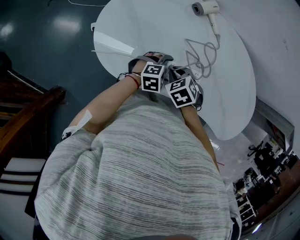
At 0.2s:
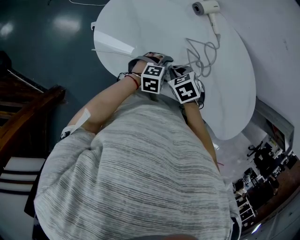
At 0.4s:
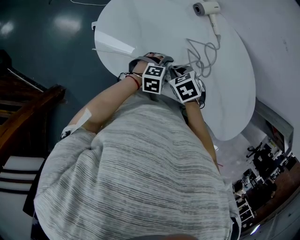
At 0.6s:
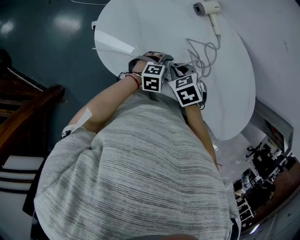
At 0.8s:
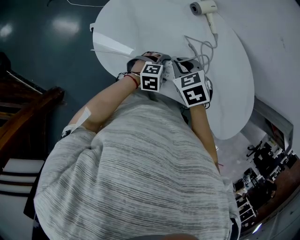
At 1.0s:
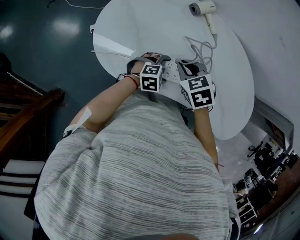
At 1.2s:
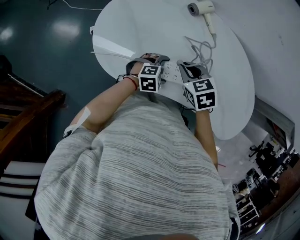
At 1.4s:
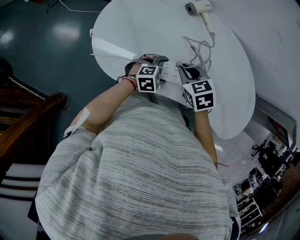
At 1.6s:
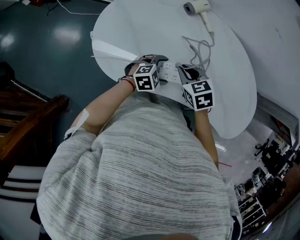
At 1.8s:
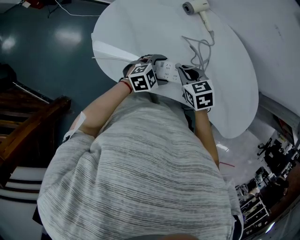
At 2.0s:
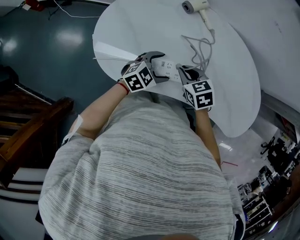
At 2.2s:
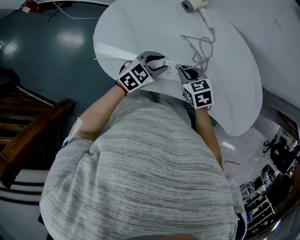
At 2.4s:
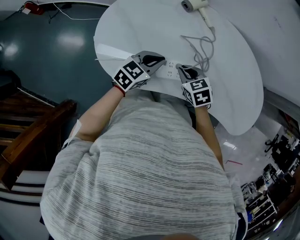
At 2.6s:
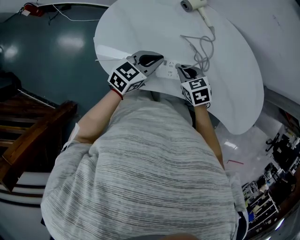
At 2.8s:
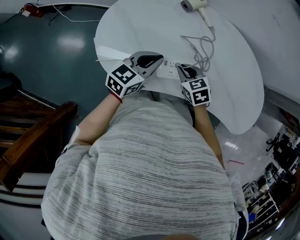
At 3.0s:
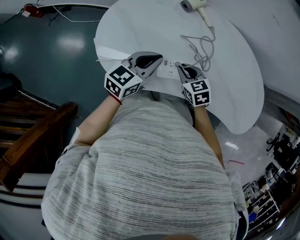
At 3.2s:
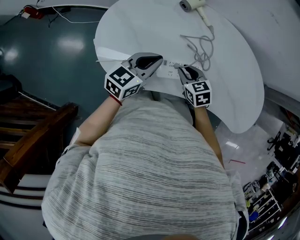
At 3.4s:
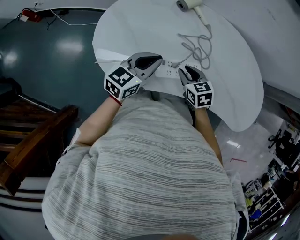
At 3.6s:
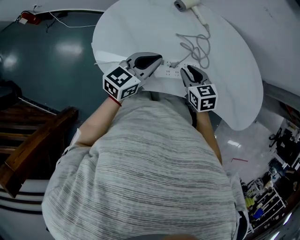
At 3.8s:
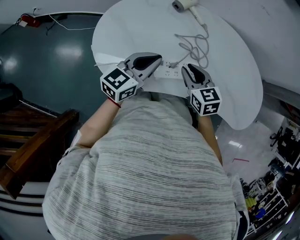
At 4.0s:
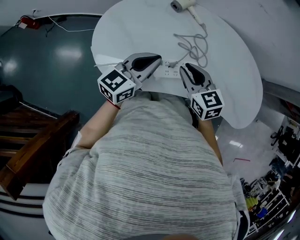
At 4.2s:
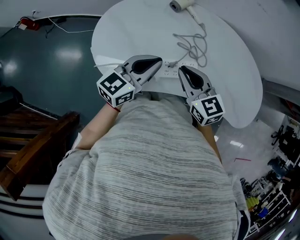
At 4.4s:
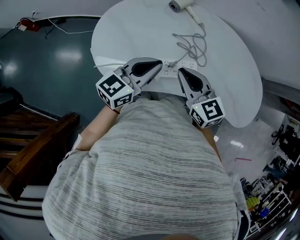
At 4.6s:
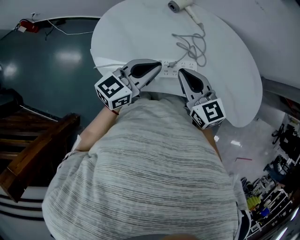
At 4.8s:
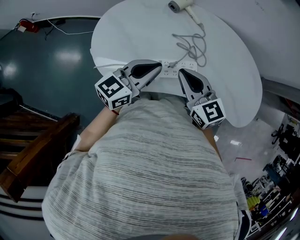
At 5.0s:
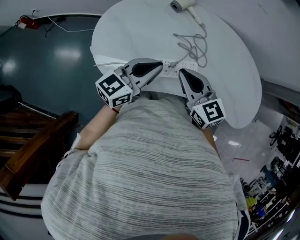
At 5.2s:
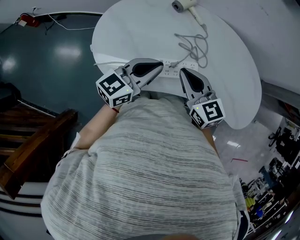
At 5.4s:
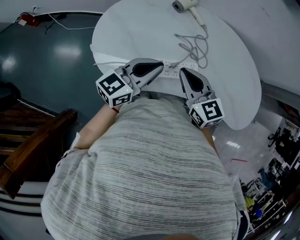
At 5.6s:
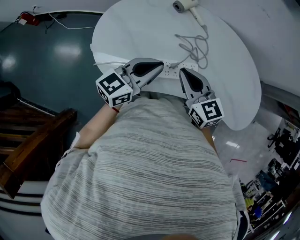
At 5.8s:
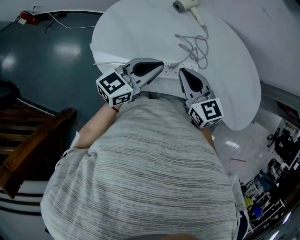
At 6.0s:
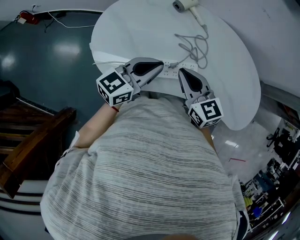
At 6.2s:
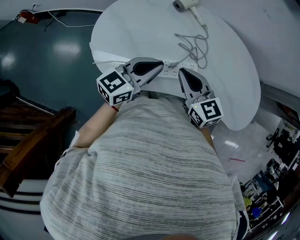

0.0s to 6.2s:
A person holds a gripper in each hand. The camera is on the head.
0.0s to 1.6s: The right gripper is displaced upward by approximately 5 cm.
1.6s to 3.2s: The left gripper moves upward and to the left, approximately 15 cm, changes its angle by some 40 degrees, and closes up. Meanwhile the right gripper shifts by about 5 cm.
3.2s to 4.6s: The left gripper goes about 5 cm upward. Meanwhile the right gripper is displaced upward by about 15 cm, and rotates some 30 degrees.
4.6s to 6.2s: There are only small adjustments of the grippers.

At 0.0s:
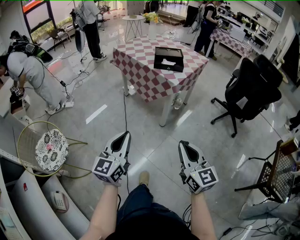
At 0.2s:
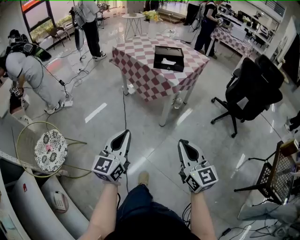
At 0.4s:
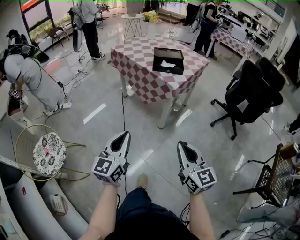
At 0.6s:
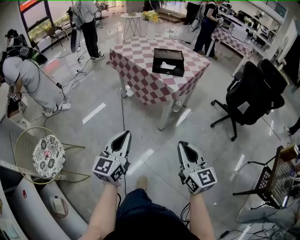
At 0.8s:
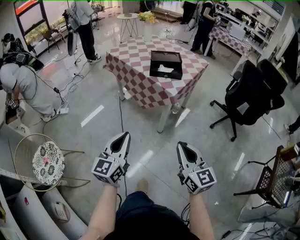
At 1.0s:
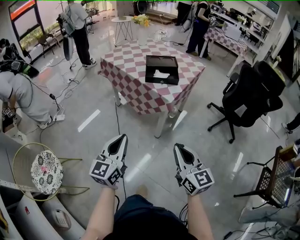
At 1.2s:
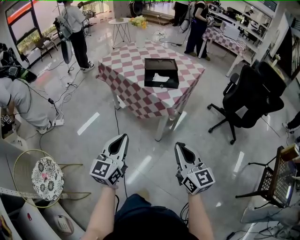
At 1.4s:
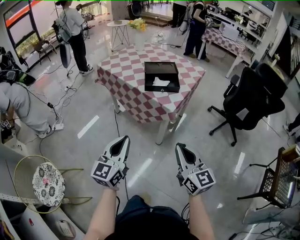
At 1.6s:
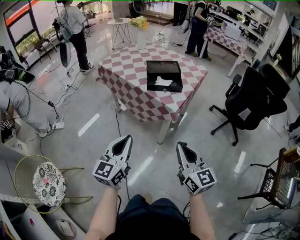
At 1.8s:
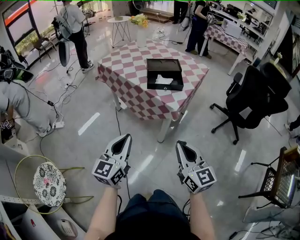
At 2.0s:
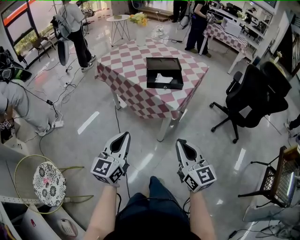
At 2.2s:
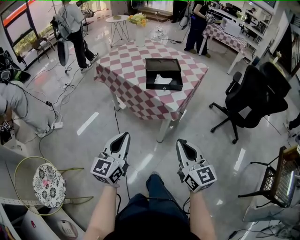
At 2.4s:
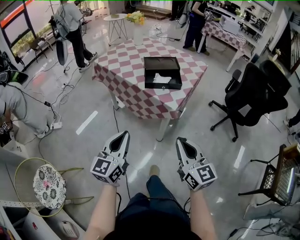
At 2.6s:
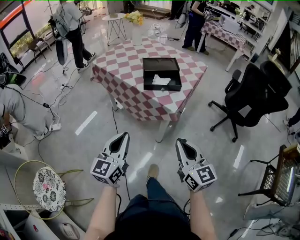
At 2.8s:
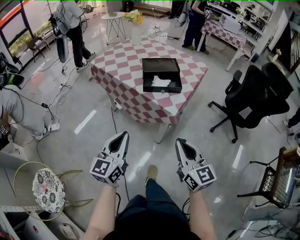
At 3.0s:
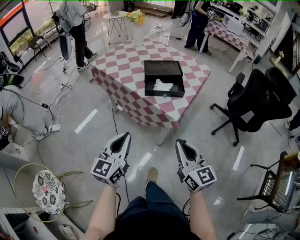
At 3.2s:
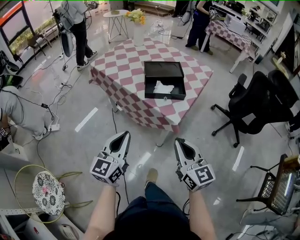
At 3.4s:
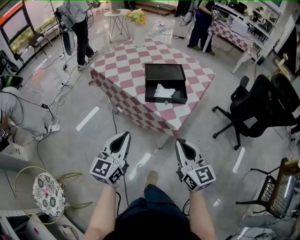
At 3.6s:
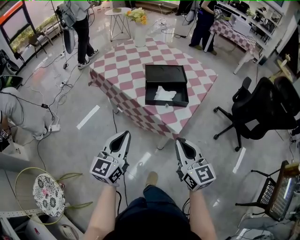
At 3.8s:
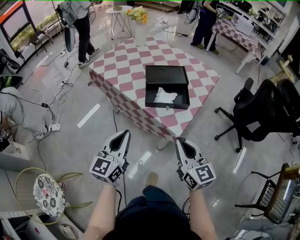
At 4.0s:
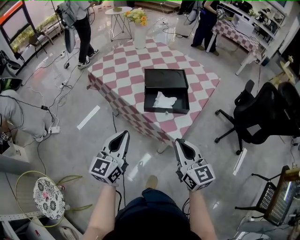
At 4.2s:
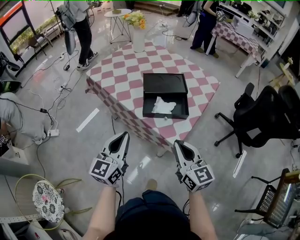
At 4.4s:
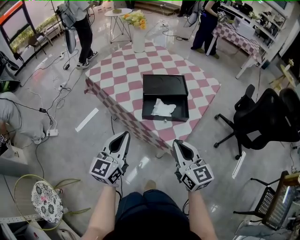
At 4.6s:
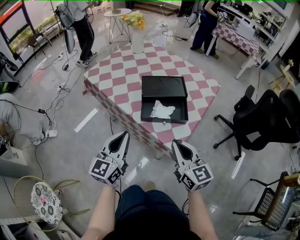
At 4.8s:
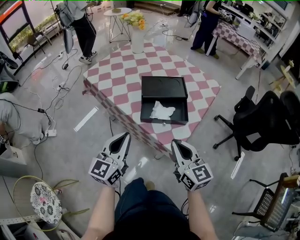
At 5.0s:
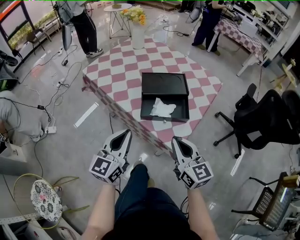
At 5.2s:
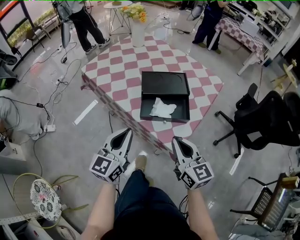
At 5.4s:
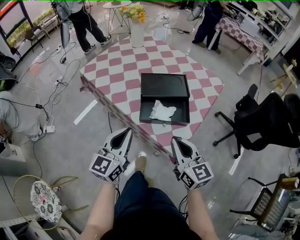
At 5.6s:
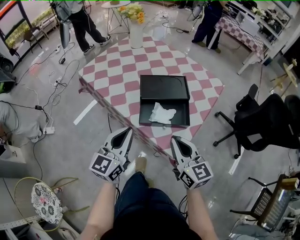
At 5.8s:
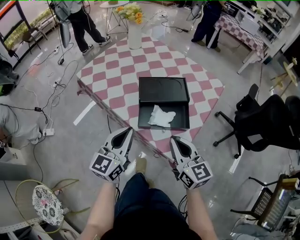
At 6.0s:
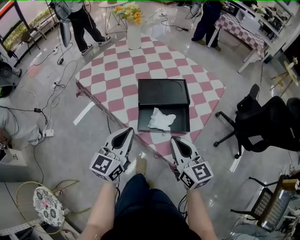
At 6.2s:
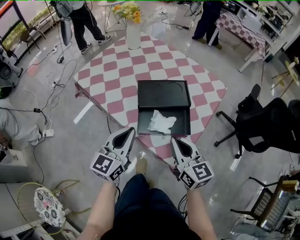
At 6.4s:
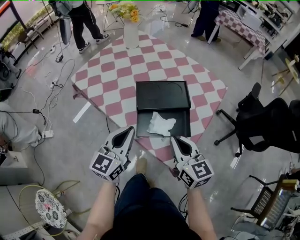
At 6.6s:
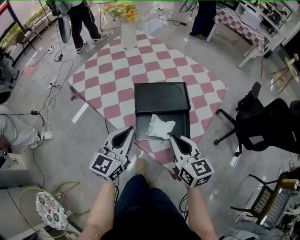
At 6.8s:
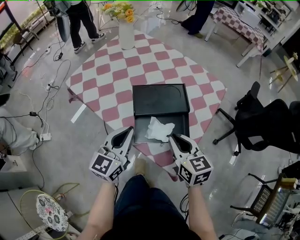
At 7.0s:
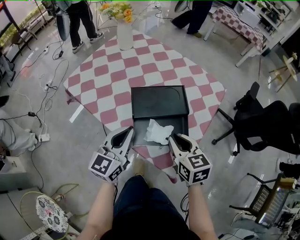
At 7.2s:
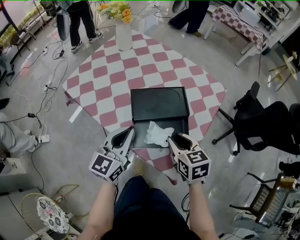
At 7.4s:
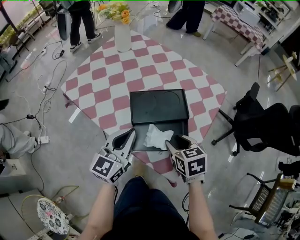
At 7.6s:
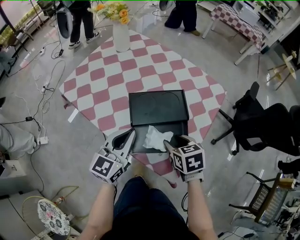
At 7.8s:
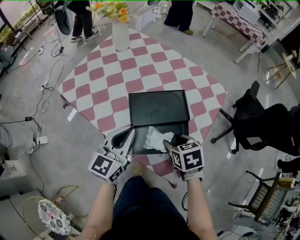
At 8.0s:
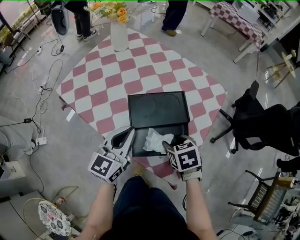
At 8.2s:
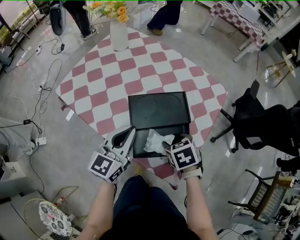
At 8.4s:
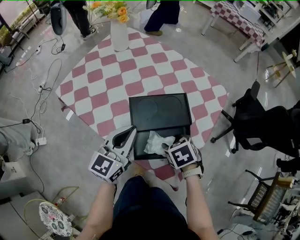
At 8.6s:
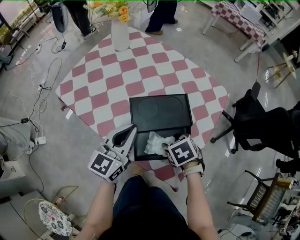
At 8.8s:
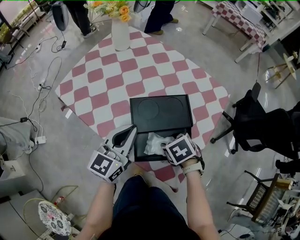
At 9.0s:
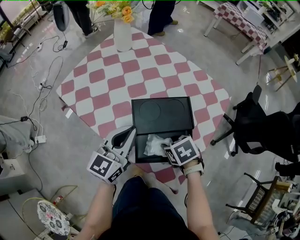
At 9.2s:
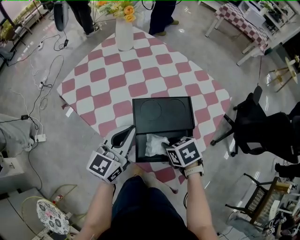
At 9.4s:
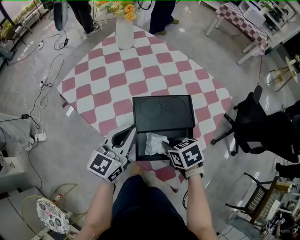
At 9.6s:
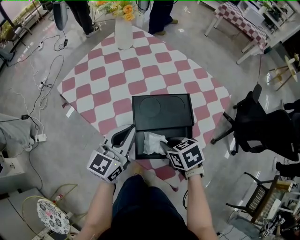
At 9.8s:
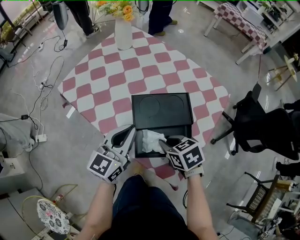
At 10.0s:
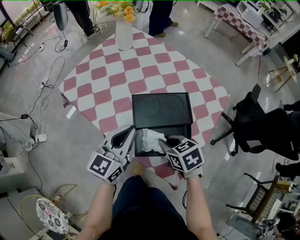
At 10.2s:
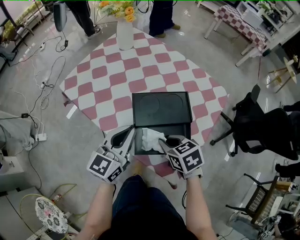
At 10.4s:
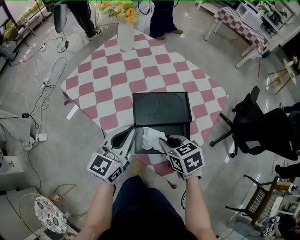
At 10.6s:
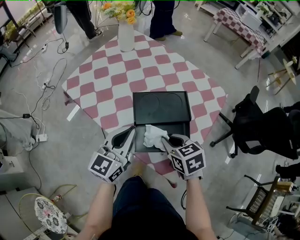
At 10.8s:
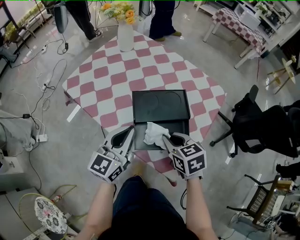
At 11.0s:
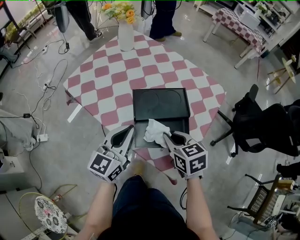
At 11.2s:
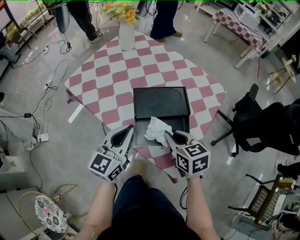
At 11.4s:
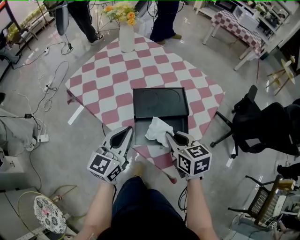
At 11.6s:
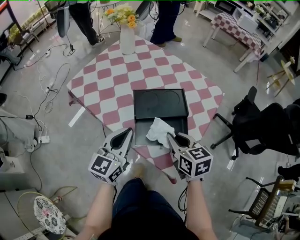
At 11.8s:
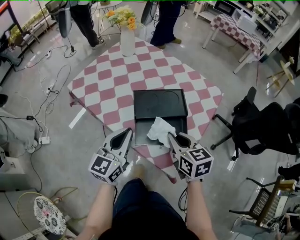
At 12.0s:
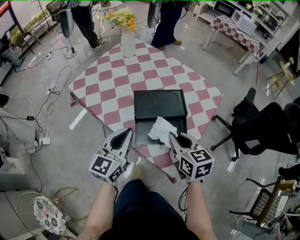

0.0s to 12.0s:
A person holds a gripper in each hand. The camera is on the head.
0.0s to 1.6s: Both grippers travel together forward, roughly 25 cm.
1.6s to 3.0s: Both grippers move forward, approximately 10 cm.
3.0s to 4.4s: The grippers both shift forward by about 20 cm.
4.4s to 6.0s: Both grippers move forward, roughly 10 cm.
6.0s to 7.6s: The left gripper is displaced forward by some 10 cm; the right gripper travels forward and downward by about 15 cm, tilts its fingers approximately 40 degrees downward, and opens its fingers.
7.6s to 9.0s: The left gripper changes place by roughly 5 cm, while the right gripper shifts by about 5 cm, and swivels roughly 20 degrees.
9.0s to 10.4s: The right gripper goes approximately 5 cm upward, swivels approximately 20 degrees, and closes.
10.4s to 12.0s: The left gripper moves backward, roughly 5 cm, while the right gripper shifts about 10 cm upward, and turns by about 20 degrees.

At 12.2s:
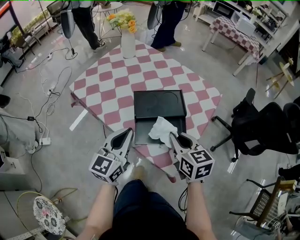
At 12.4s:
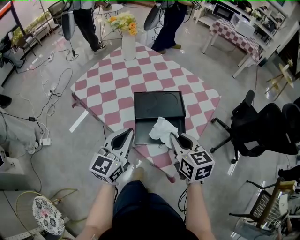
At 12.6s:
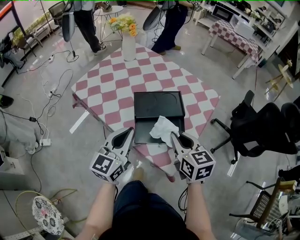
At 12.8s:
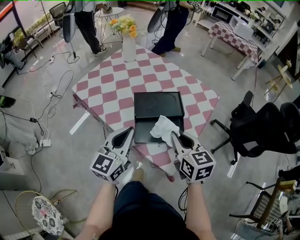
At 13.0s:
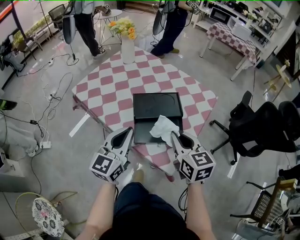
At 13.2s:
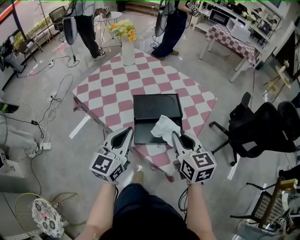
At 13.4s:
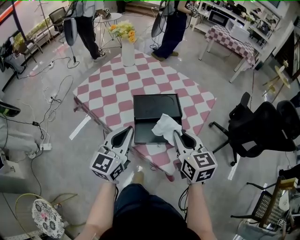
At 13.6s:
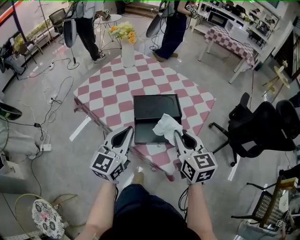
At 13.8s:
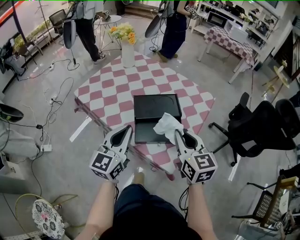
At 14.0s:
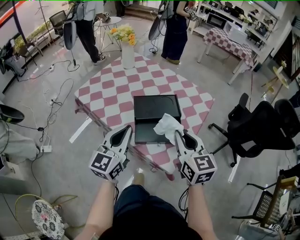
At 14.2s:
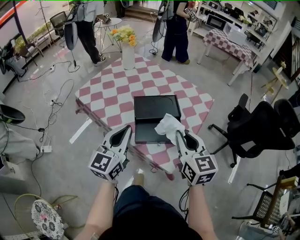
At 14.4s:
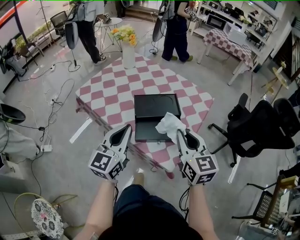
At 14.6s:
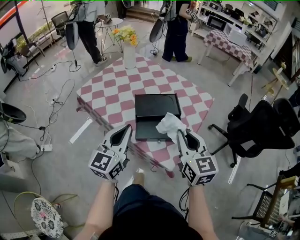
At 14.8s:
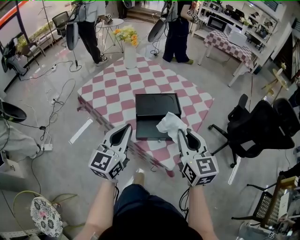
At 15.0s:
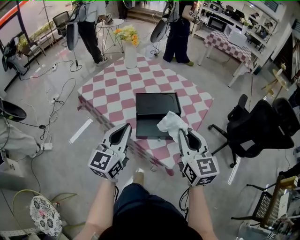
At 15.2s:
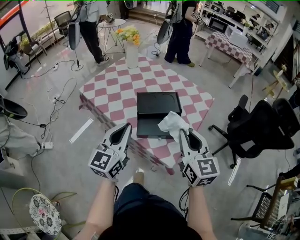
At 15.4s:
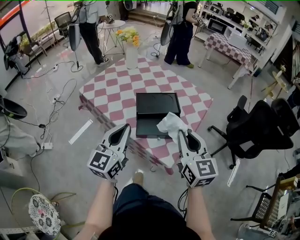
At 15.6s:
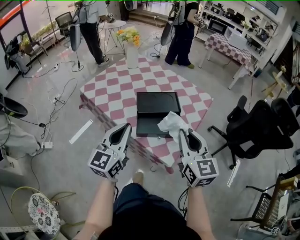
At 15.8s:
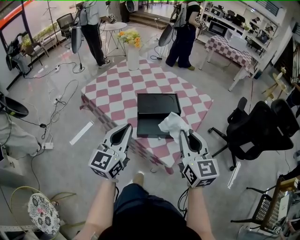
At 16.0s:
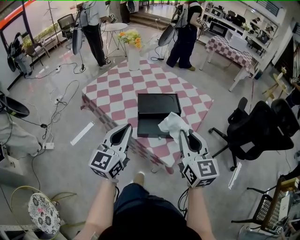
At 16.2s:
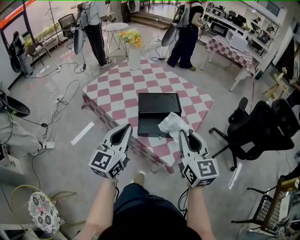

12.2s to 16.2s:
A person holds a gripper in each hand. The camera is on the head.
12.2s to 13.6s: The right gripper heads upward, covering some 5 cm; the left gripper ends up roughly 5 cm from where it was.
13.6s to 14.8s: The right gripper moves about 5 cm.
14.8s to 16.2s: The grippers make only small movements.

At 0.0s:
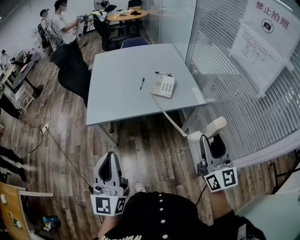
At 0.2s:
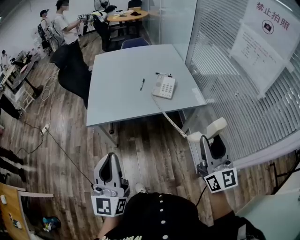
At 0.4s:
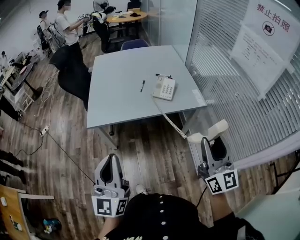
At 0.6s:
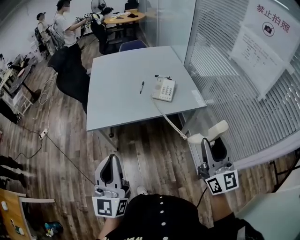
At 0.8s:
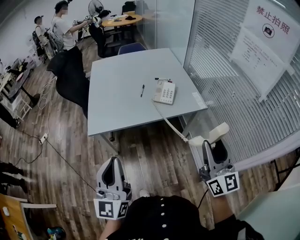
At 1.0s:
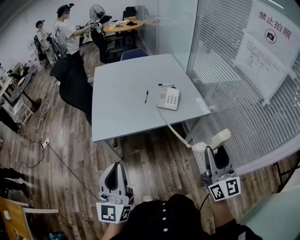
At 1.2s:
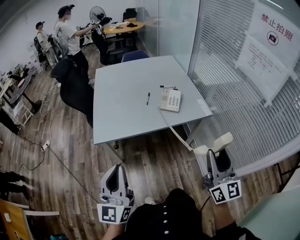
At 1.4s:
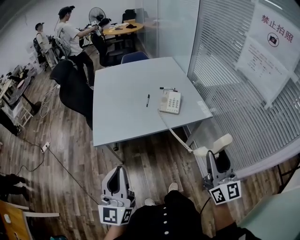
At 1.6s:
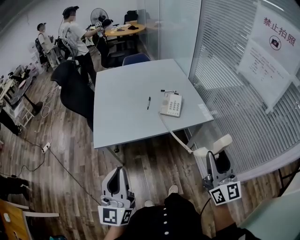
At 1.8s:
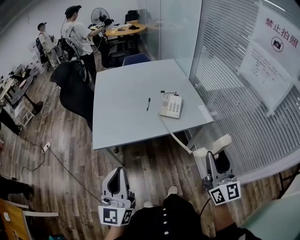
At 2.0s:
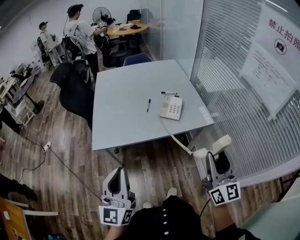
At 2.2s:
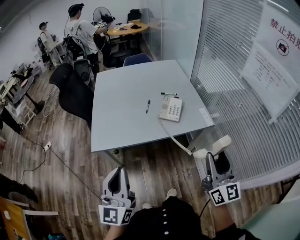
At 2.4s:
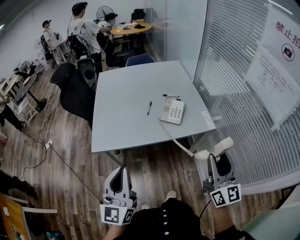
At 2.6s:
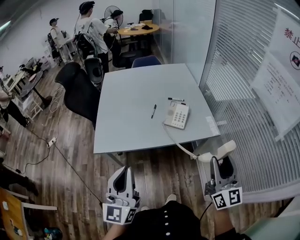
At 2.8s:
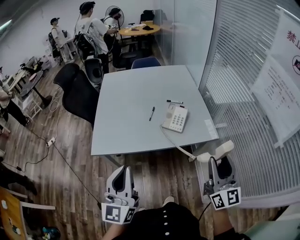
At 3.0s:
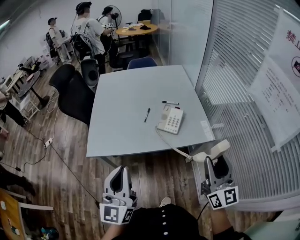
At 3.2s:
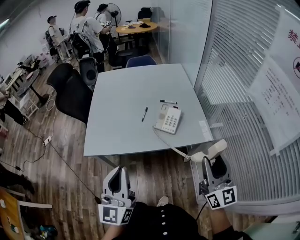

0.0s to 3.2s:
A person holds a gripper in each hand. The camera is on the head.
0.0s to 1.6s: The right gripper goes approximately 5 cm to the left, while the left gripper heads forward and to the left, covering some 10 cm.
1.6s to 3.2s: The grippers both shift forward and to the right by approximately 15 cm.
